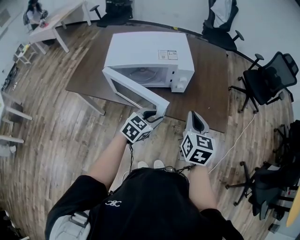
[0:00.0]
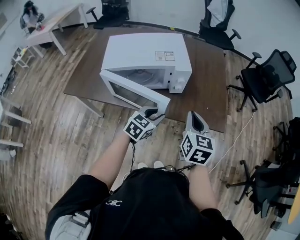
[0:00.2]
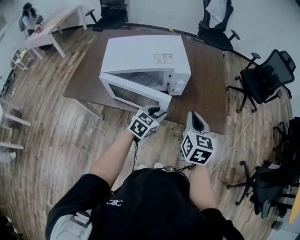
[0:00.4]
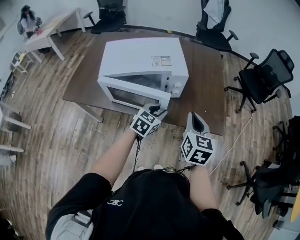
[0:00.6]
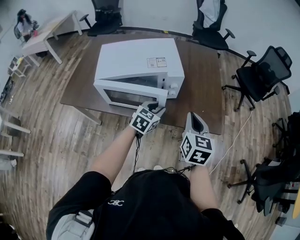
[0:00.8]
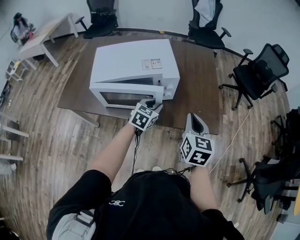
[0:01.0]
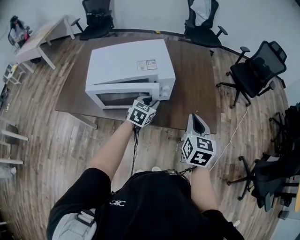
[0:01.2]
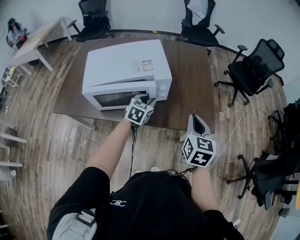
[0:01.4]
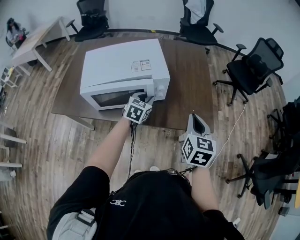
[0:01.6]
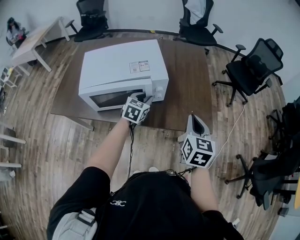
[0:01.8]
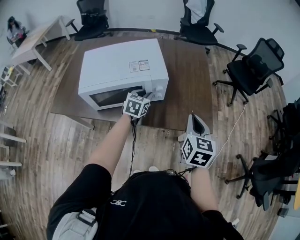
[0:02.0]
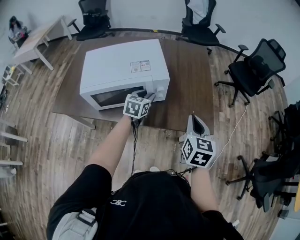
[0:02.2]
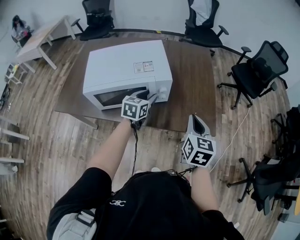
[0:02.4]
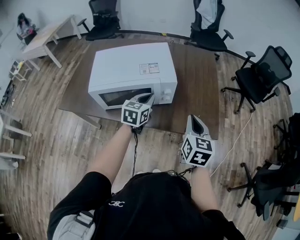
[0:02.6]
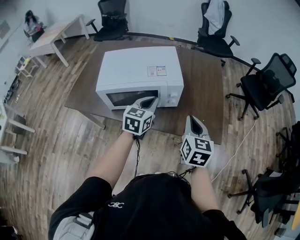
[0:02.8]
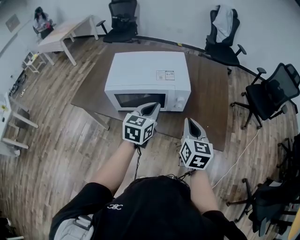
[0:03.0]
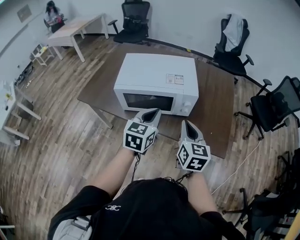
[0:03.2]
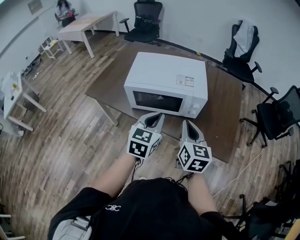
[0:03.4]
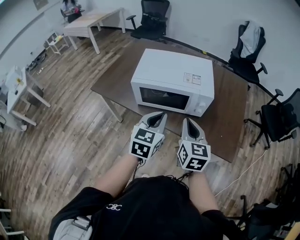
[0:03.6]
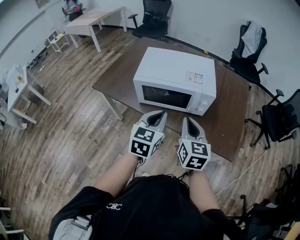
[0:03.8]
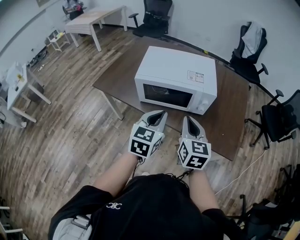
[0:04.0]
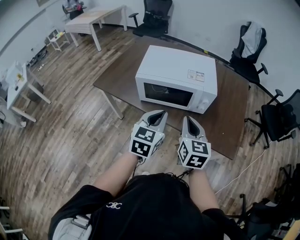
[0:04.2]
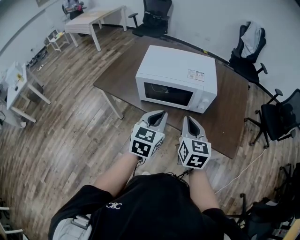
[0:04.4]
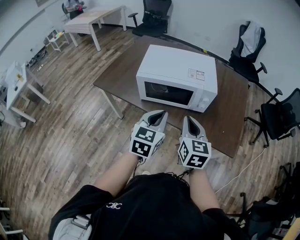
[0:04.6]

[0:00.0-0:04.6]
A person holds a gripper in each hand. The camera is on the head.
0:00.0 to 0:01.6: The left gripper goes some 15 cm forward; the right gripper goes about 10 cm to the right and forward.
0:01.6 to 0:03.0: The right gripper travels to the left by about 10 cm. The left gripper moves upward and backward, about 15 cm, swivels some 20 degrees, and closes its fingers.
0:03.0 to 0:04.6: The right gripper moves to the left, roughly 10 cm; the left gripper moves backward and to the left, about 15 cm.

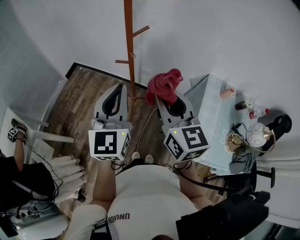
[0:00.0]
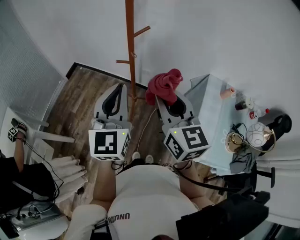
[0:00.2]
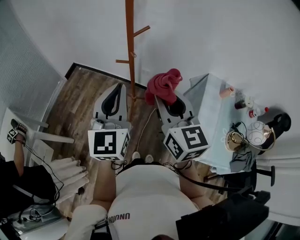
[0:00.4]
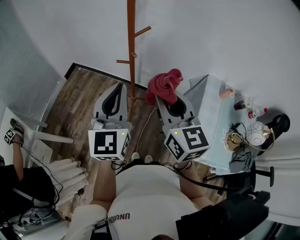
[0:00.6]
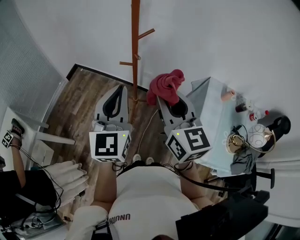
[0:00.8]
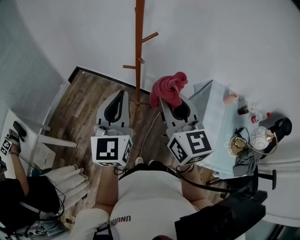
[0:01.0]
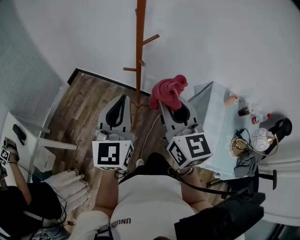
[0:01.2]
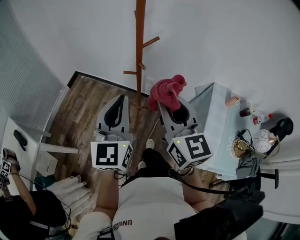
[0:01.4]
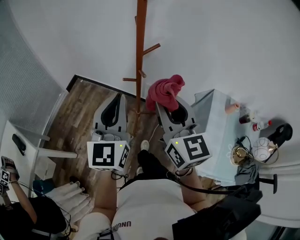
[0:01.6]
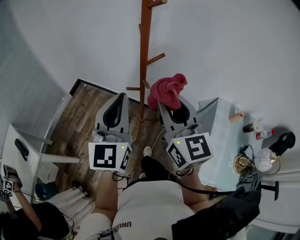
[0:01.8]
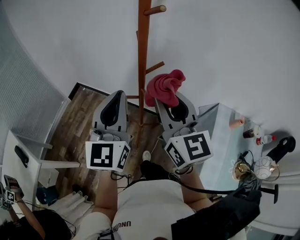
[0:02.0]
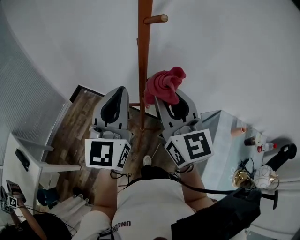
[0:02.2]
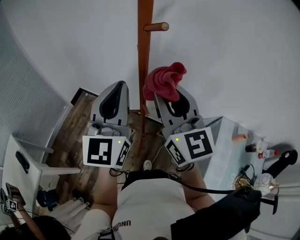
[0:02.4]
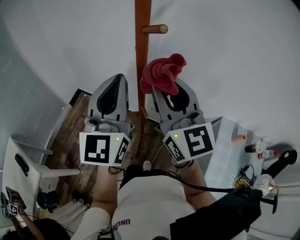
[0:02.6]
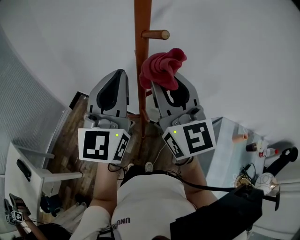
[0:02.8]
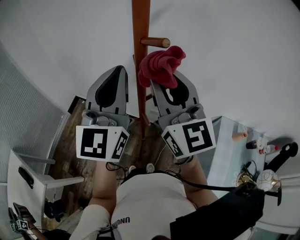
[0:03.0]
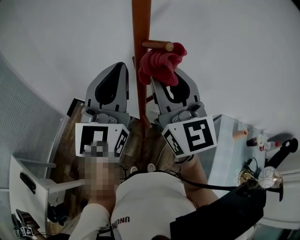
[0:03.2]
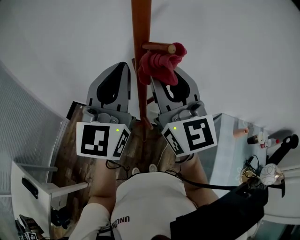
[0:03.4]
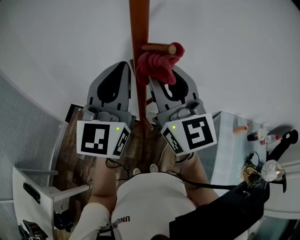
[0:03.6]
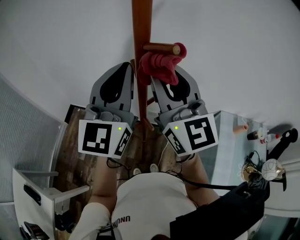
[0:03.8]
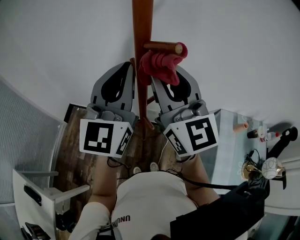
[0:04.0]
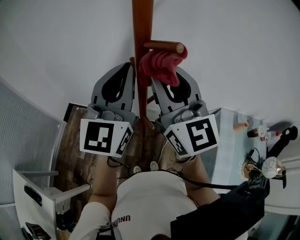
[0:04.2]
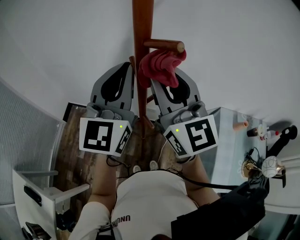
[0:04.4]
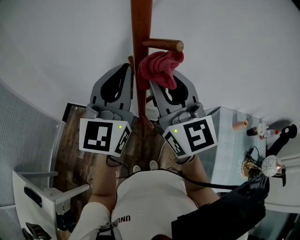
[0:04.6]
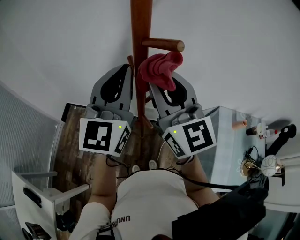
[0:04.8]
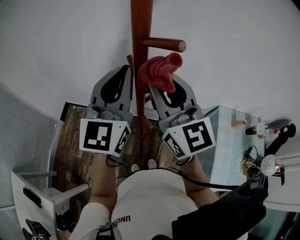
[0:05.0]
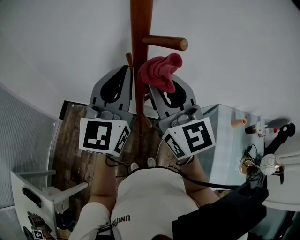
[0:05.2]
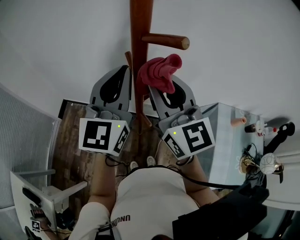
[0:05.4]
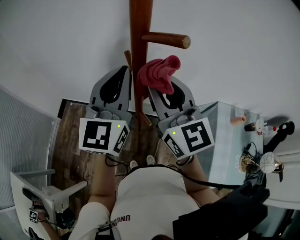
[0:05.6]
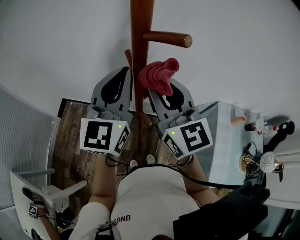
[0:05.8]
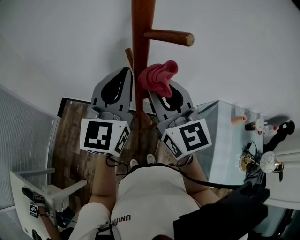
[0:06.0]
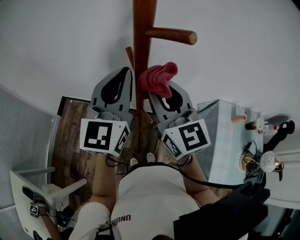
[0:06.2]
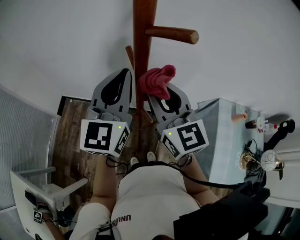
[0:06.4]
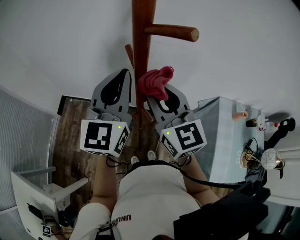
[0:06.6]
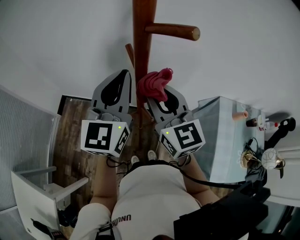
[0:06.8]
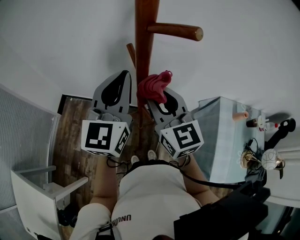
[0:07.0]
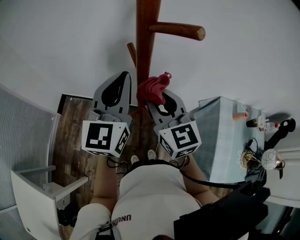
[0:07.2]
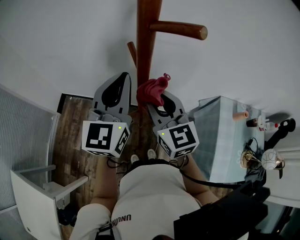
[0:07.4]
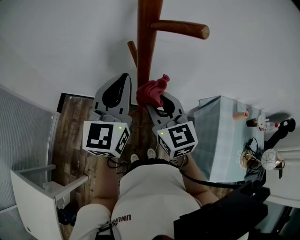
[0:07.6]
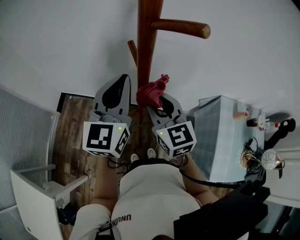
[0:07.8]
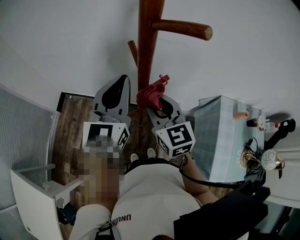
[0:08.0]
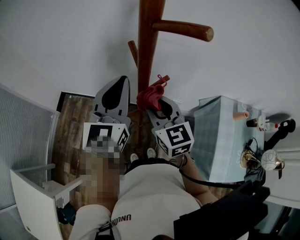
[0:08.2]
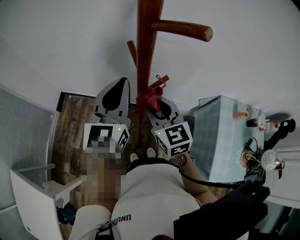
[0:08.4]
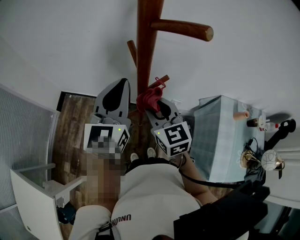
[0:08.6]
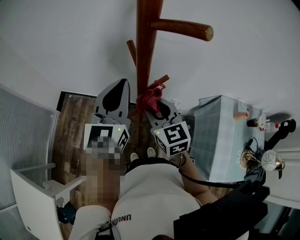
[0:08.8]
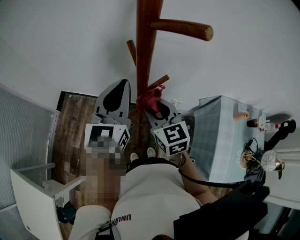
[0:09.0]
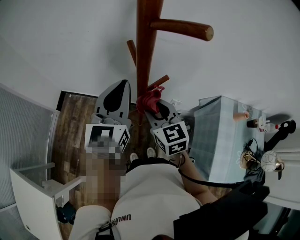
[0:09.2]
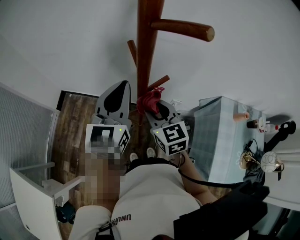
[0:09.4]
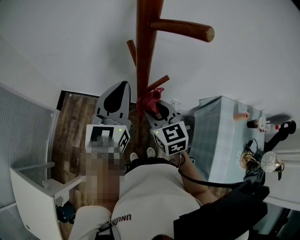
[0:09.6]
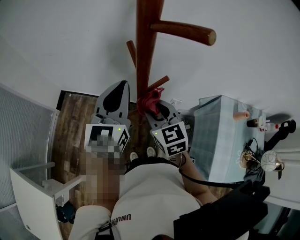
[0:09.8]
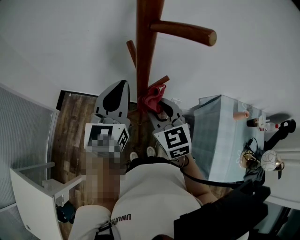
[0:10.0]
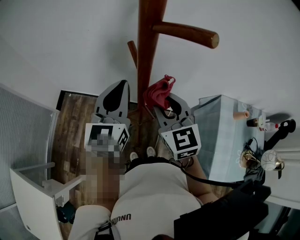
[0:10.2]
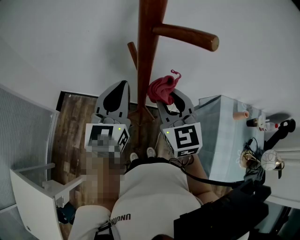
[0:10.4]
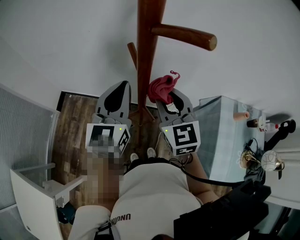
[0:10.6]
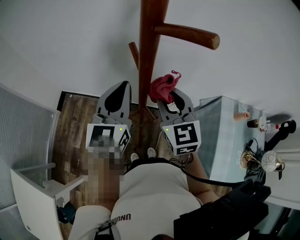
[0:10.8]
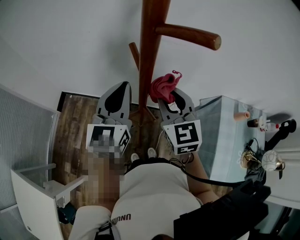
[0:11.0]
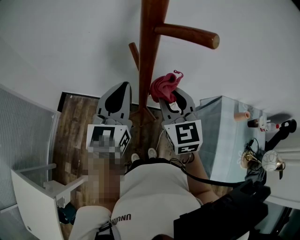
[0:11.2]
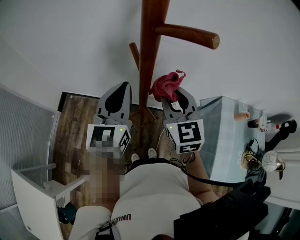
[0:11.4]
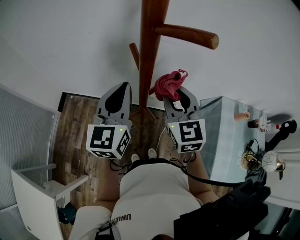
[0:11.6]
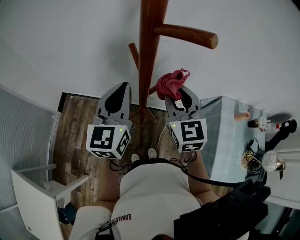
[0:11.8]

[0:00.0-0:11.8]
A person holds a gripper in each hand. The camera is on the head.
0:00.0 to 0:01.4: The right gripper shifts by approximately 5 cm.
0:01.4 to 0:03.0: Both grippers move forward and upward, roughly 25 cm.
0:03.0 to 0:04.4: There are only small adjustments of the grippers.
0:04.4 to 0:06.0: The grippers both shift downward by roughly 5 cm.
0:06.0 to 0:07.4: The right gripper moves downward, roughly 10 cm.
0:07.4 to 0:08.8: The right gripper heads downward, covering approximately 5 cm.
0:08.8 to 0:10.4: The right gripper moves upward, approximately 5 cm.
0:10.4 to 0:11.8: There are only small adjustments of the grippers.

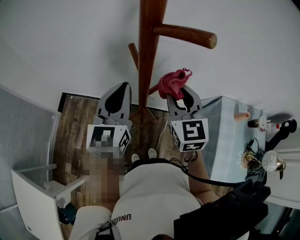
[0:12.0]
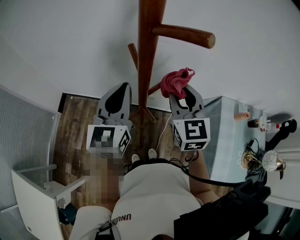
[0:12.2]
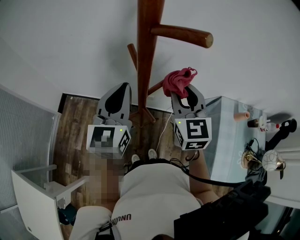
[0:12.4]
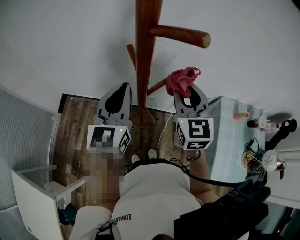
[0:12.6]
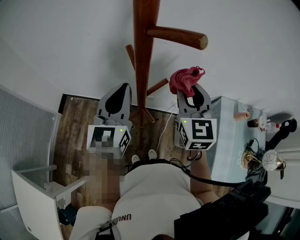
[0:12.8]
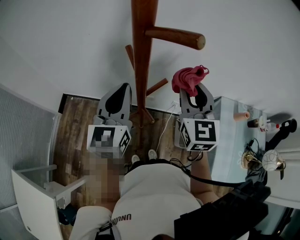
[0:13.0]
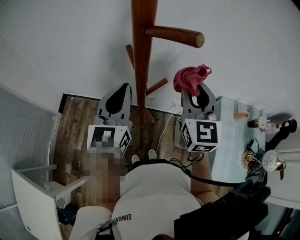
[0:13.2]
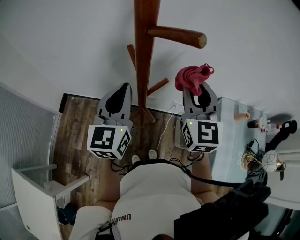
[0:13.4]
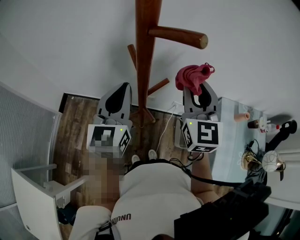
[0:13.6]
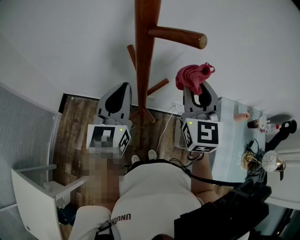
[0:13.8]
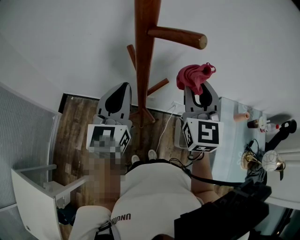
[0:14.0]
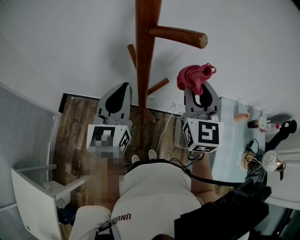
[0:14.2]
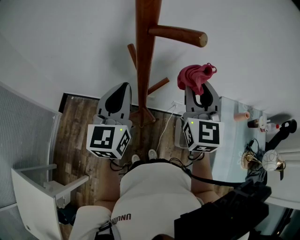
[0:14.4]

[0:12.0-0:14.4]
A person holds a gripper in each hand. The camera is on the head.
0:12.0 to 0:13.2: The right gripper shifts by some 5 cm.
0:13.2 to 0:14.4: The two grippers keep their place.

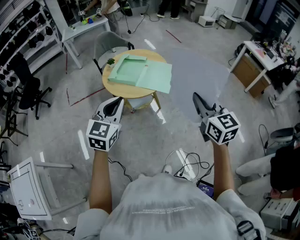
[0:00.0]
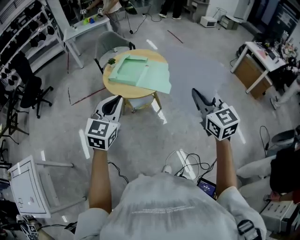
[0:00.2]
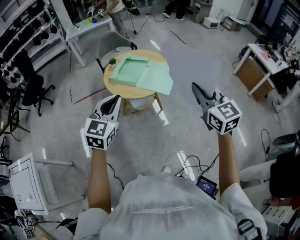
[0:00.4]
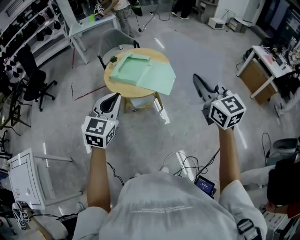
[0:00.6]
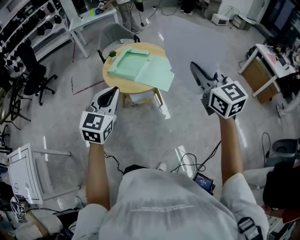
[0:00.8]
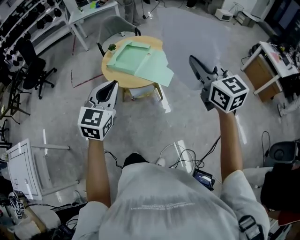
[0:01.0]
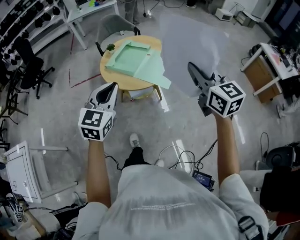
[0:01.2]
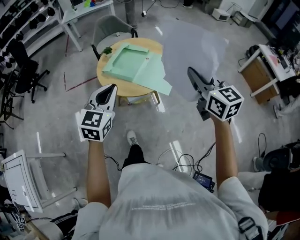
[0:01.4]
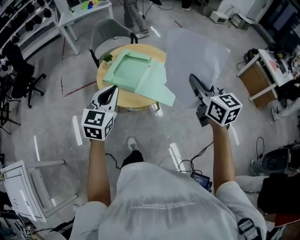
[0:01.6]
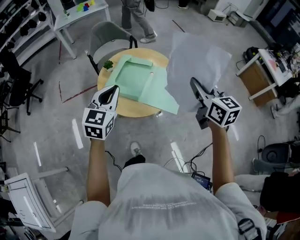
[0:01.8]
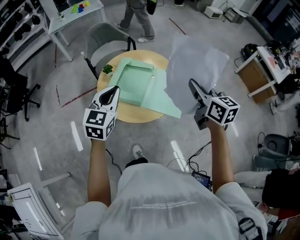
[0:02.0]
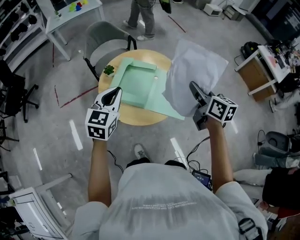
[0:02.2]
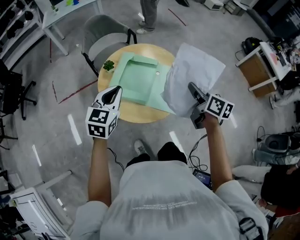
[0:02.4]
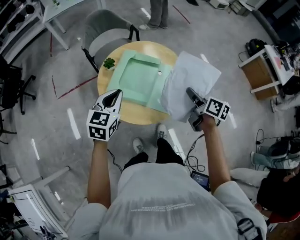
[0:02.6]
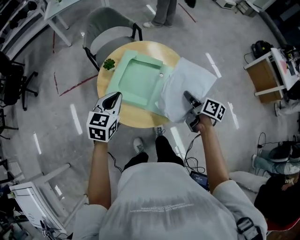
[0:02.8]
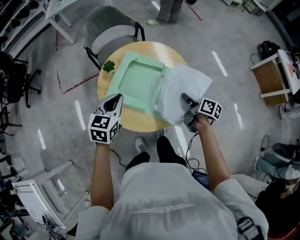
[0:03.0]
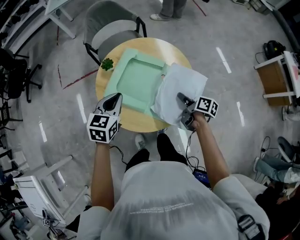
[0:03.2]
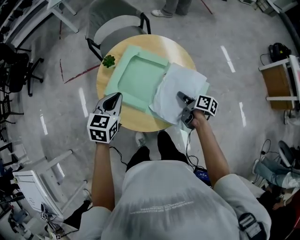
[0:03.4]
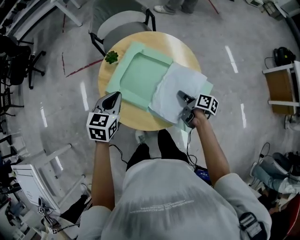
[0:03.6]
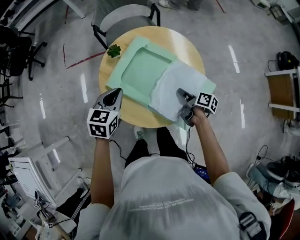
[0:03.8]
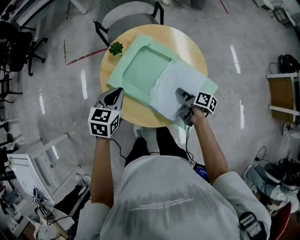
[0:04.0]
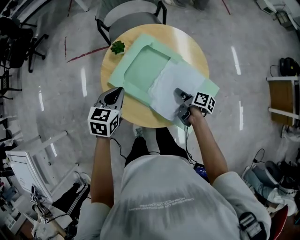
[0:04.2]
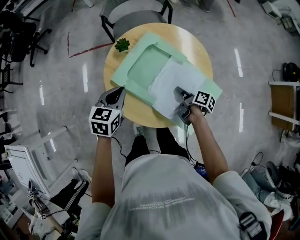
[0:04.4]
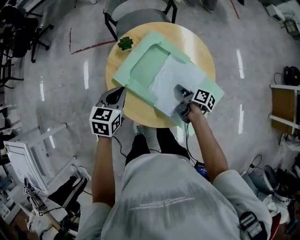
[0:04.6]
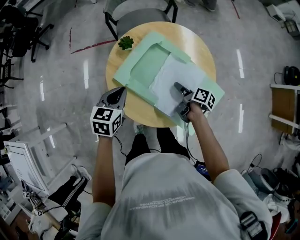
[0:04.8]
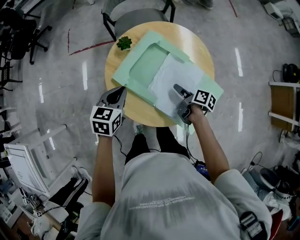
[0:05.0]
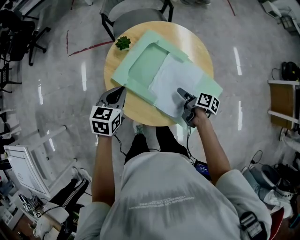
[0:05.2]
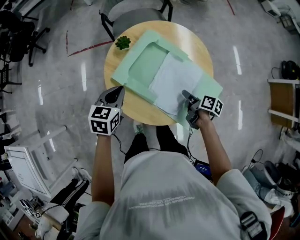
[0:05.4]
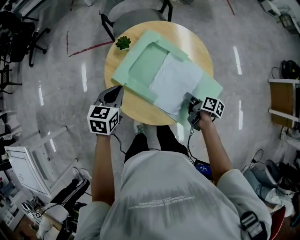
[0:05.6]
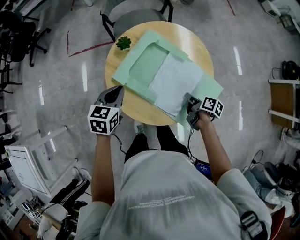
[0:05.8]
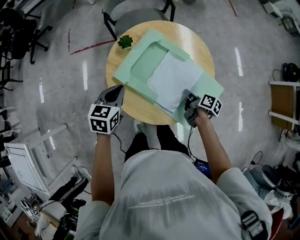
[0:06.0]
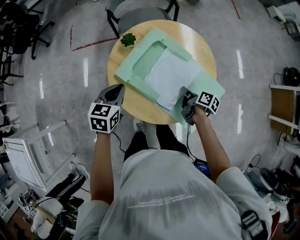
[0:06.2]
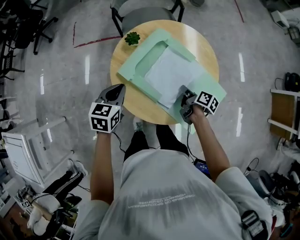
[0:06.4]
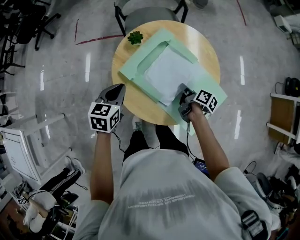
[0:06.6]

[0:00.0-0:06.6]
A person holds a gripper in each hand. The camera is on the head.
0:00.0 to 0:01.6: The two grippers go about 25 cm forward.
0:01.6 to 0:03.2: The left gripper goes roughly 30 cm forward and downward, and rotates approximately 20 degrees. Meanwhile the right gripper travels downward and forward by roughly 40 cm, and rolls clockwise, seen from behind, by some 60 degrees.
0:03.2 to 0:05.0: The right gripper moves downward, to the left and forward, approximately 10 cm, and opens up. Meanwhile the left gripper travels downward by about 5 cm.
0:05.0 to 0:06.6: The right gripper closes its fingers.
